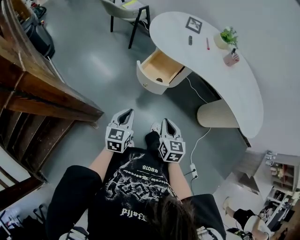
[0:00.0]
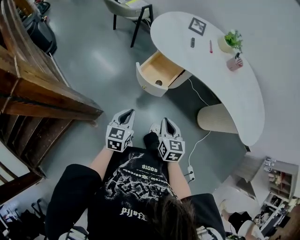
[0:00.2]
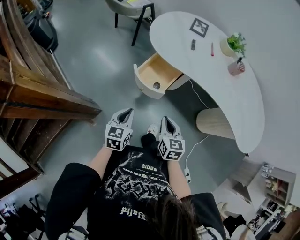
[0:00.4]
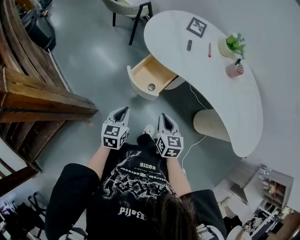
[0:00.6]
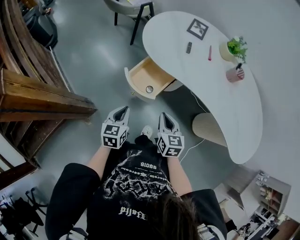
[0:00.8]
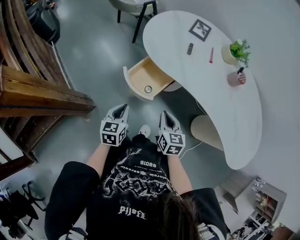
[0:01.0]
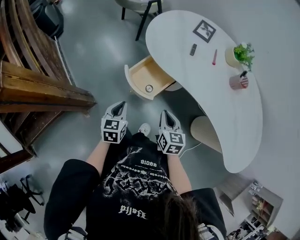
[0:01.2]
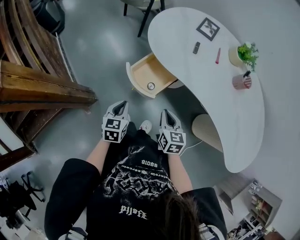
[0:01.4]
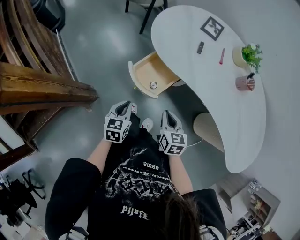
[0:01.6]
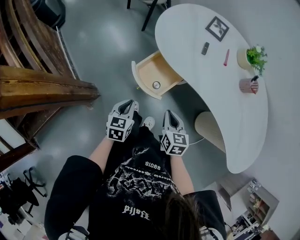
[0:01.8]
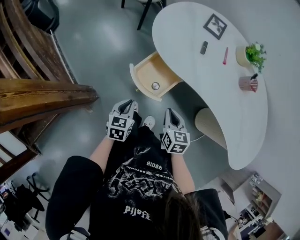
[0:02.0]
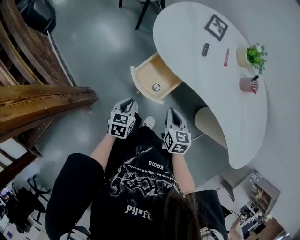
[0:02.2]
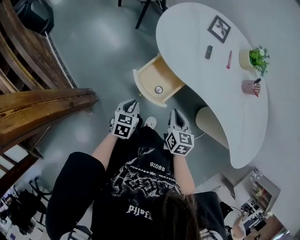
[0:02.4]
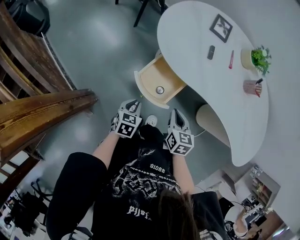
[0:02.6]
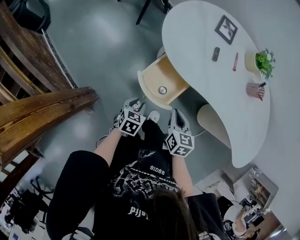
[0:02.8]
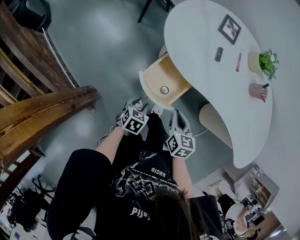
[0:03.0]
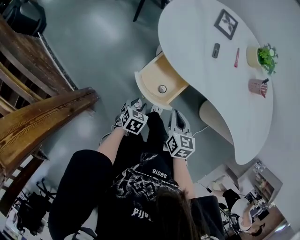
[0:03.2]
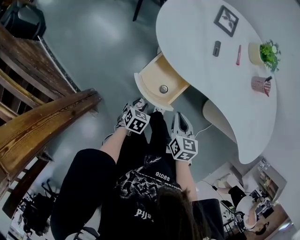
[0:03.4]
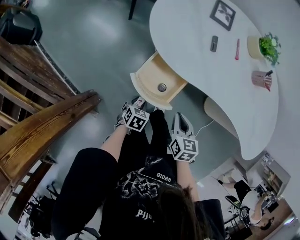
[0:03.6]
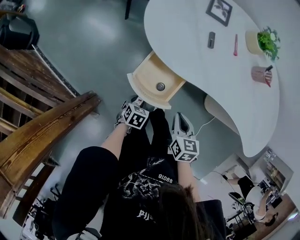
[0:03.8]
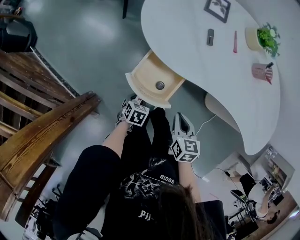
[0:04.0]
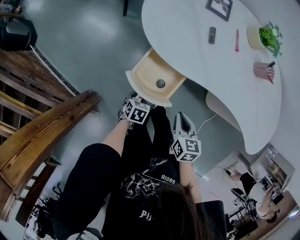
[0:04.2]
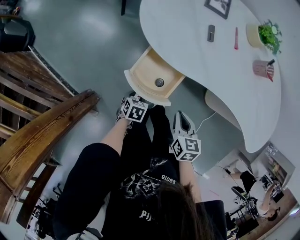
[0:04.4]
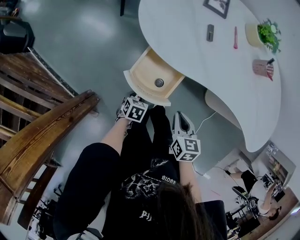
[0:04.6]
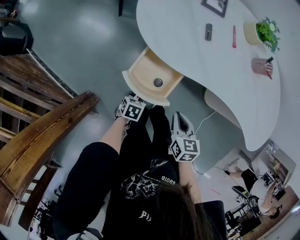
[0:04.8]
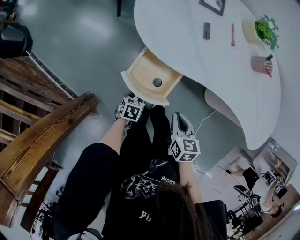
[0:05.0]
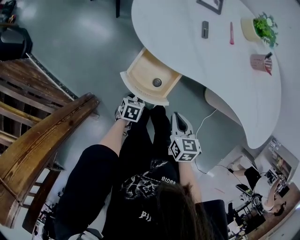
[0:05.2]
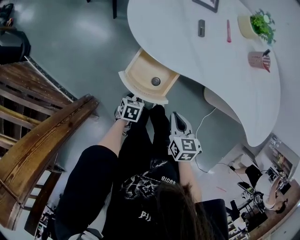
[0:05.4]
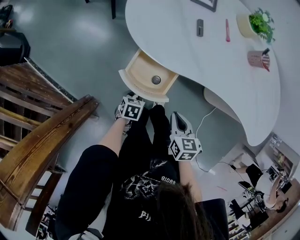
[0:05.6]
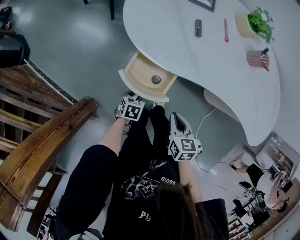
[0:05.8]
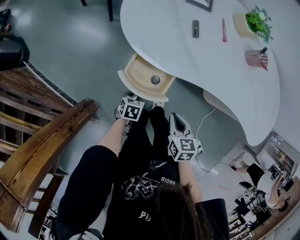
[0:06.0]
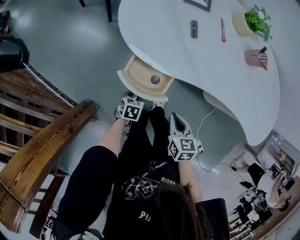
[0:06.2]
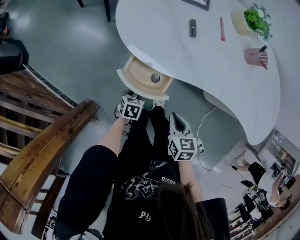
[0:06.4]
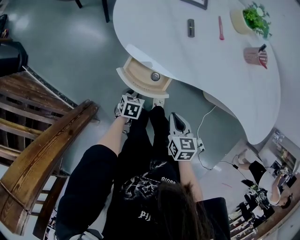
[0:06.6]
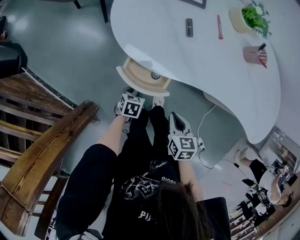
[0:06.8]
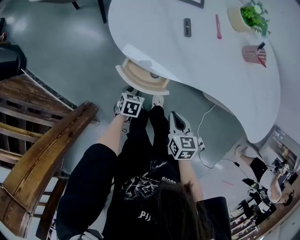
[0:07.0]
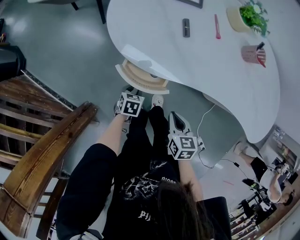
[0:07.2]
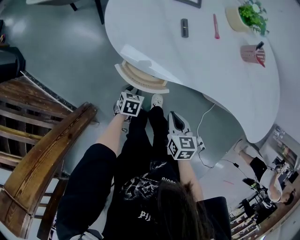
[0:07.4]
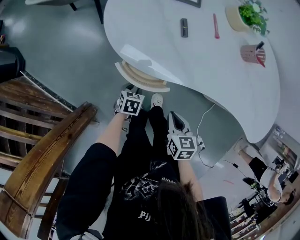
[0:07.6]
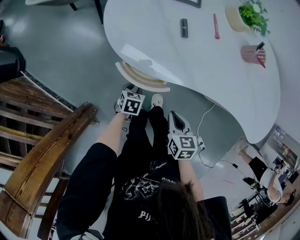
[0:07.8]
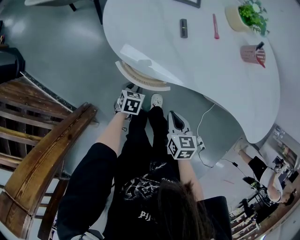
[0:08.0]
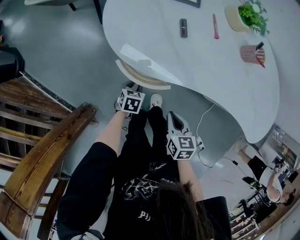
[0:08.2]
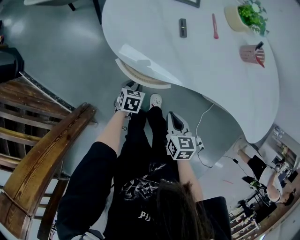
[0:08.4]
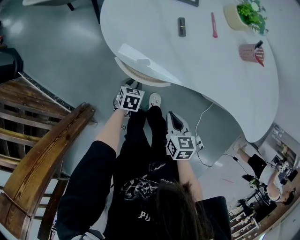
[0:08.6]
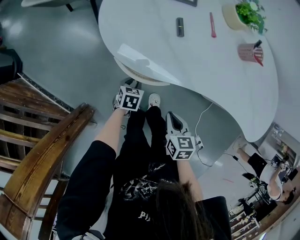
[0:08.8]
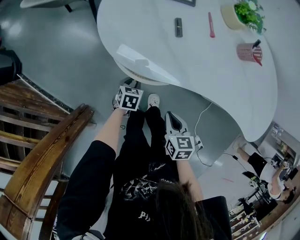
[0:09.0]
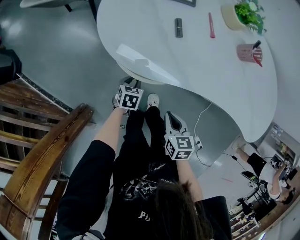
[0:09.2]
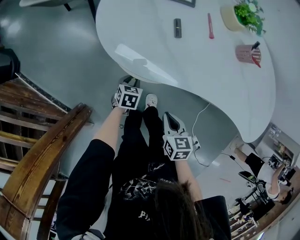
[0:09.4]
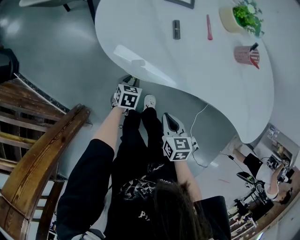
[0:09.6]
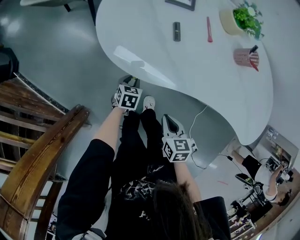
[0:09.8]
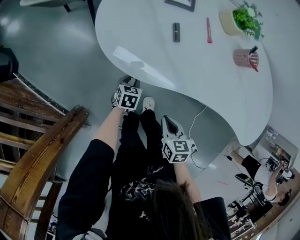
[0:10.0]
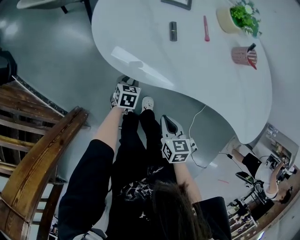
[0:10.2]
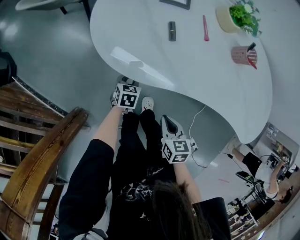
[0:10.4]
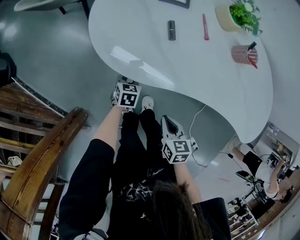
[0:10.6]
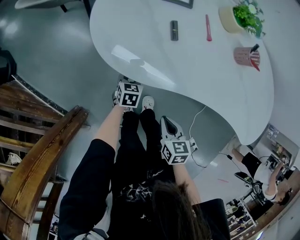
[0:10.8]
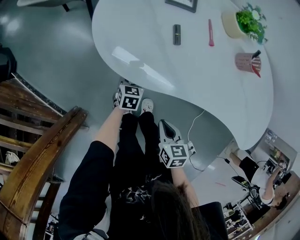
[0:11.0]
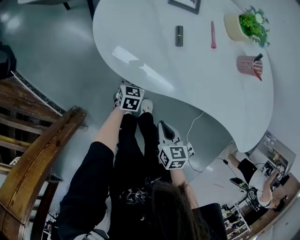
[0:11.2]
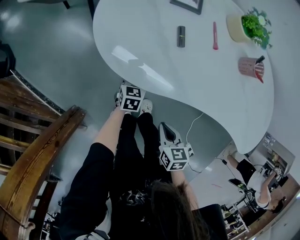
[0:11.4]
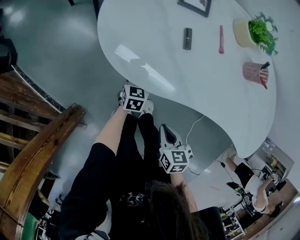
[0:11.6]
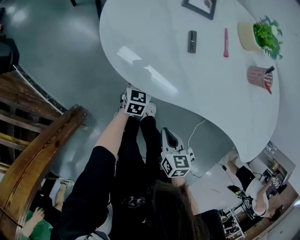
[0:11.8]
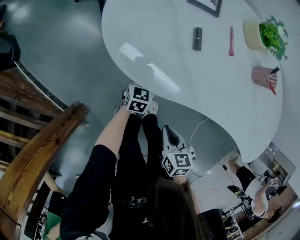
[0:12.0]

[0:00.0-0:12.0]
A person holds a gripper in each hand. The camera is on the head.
0:00.0 to 0:01.6: The left gripper heads forward, to the right and downward, covering about 20 cm. Meanwhile the right gripper heads forward and to the right, covering roughly 20 cm.
0:01.6 to 0:03.0: The left gripper moves downward and forward, some 15 cm, changes its angle by some 30 degrees, and opens, while the right gripper moves forward and to the left, roughly 10 cm.
0:03.0 to 0:04.4: The right gripper moves roughly 5 cm; the left gripper goes about 10 cm downward.
0:04.4 to 0:06.0: There are only small adjustments of the grippers.
0:06.0 to 0:07.6: The left gripper shifts approximately 5 cm forward.
0:07.6 to 0:09.0: There are only small adjustments of the grippers.
0:09.0 to 0:10.4: The left gripper ends up approximately 5 cm from where it was.
0:10.4 to 0:12.0: The left gripper heads forward, covering roughly 5 cm.

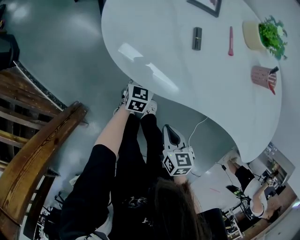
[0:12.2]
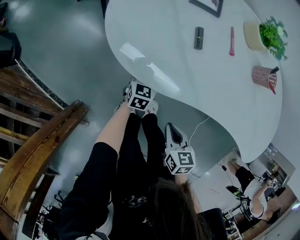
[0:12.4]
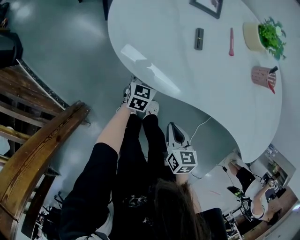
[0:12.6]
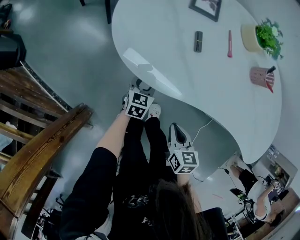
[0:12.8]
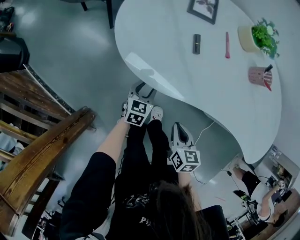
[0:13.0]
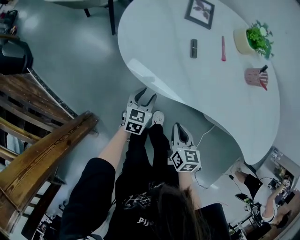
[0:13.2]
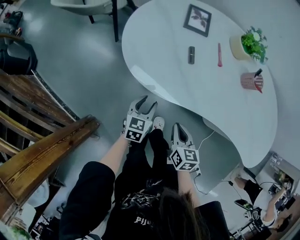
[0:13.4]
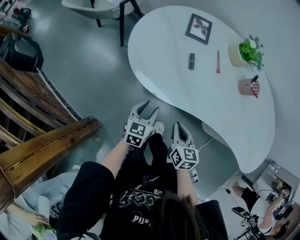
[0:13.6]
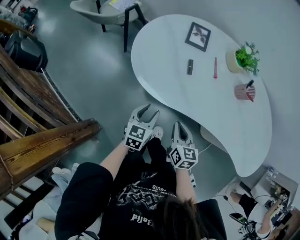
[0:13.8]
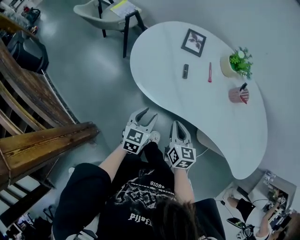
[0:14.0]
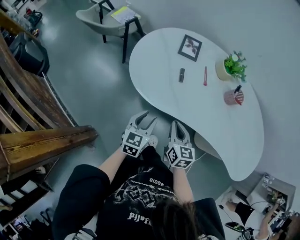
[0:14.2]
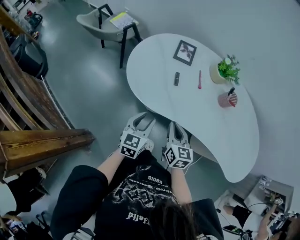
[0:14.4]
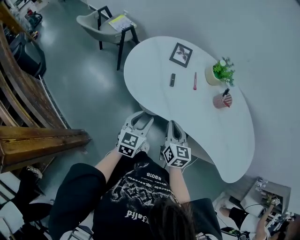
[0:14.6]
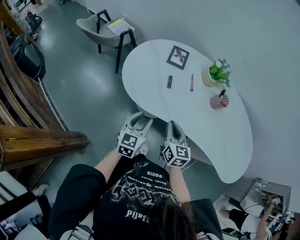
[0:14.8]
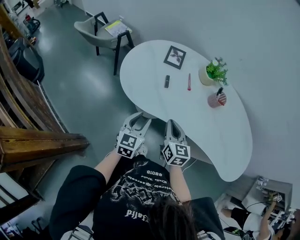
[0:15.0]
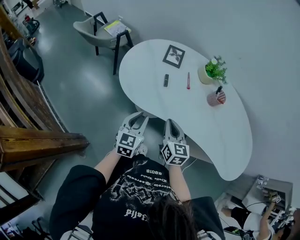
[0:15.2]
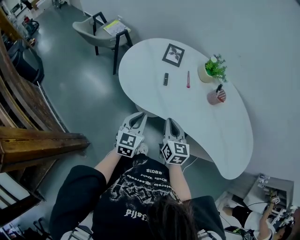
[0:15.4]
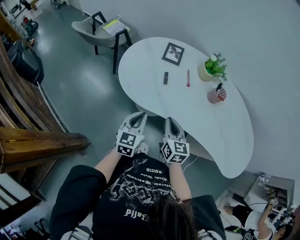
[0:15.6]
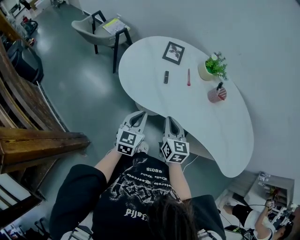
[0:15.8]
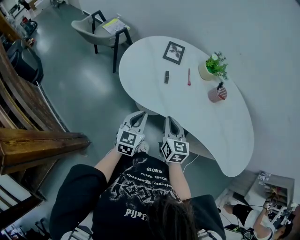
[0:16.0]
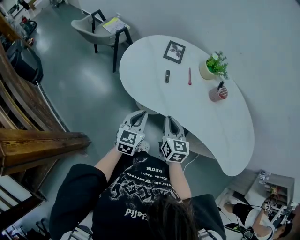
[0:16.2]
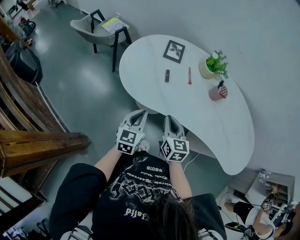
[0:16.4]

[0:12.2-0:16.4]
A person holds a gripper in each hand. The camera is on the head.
0:12.2 to 0:13.6: The right gripper shifts about 10 cm upward. Meanwhile the left gripper goes about 20 cm upward and backward.
0:13.6 to 0:15.0: The two grippers go about 15 cm upward.
0:15.0 to 0:16.4: The left gripper closes up.

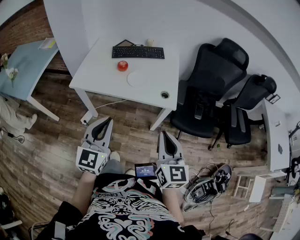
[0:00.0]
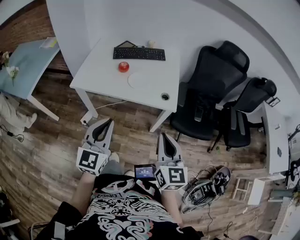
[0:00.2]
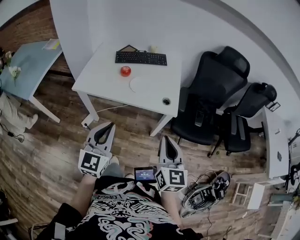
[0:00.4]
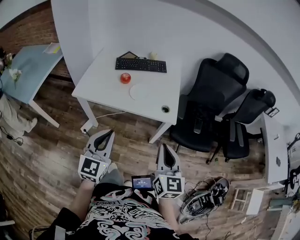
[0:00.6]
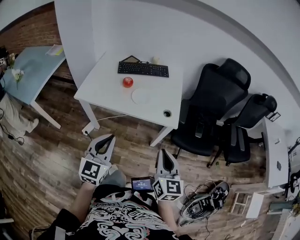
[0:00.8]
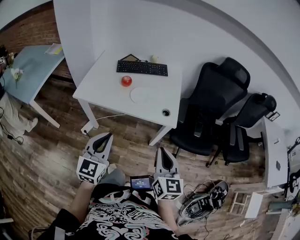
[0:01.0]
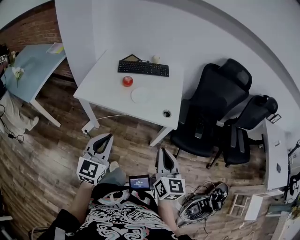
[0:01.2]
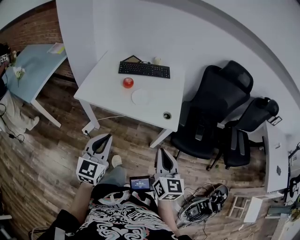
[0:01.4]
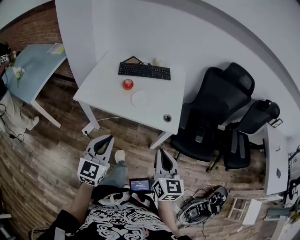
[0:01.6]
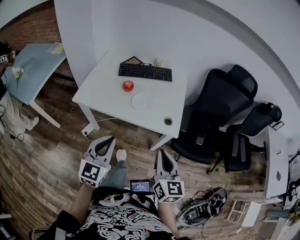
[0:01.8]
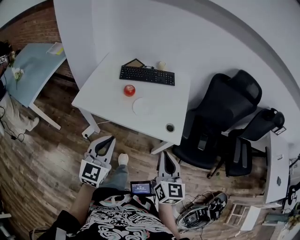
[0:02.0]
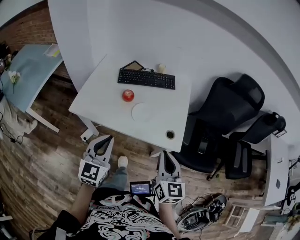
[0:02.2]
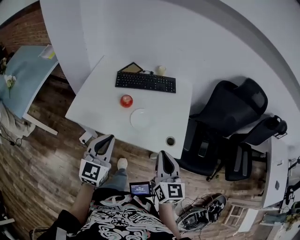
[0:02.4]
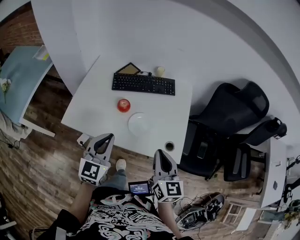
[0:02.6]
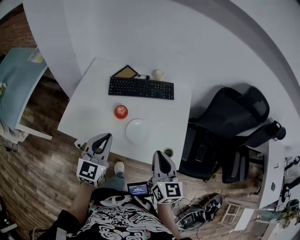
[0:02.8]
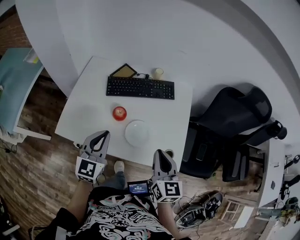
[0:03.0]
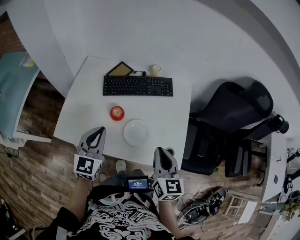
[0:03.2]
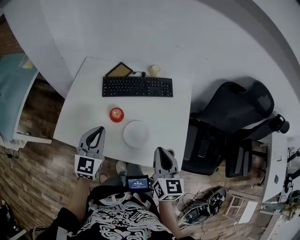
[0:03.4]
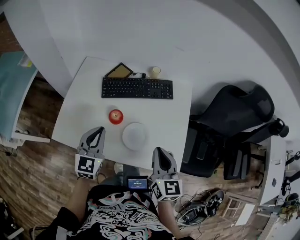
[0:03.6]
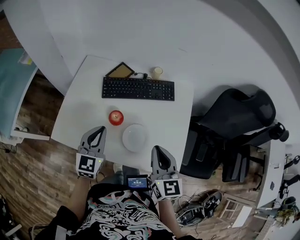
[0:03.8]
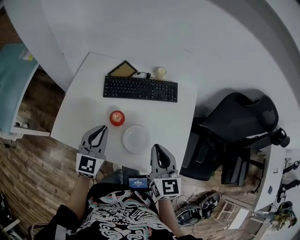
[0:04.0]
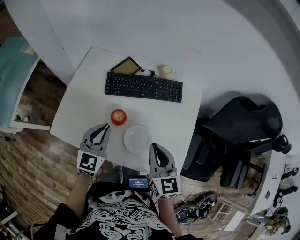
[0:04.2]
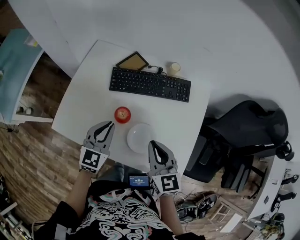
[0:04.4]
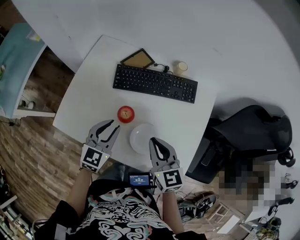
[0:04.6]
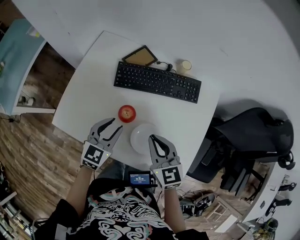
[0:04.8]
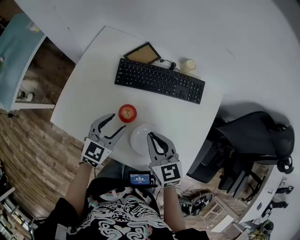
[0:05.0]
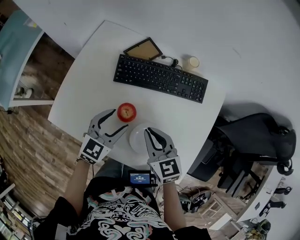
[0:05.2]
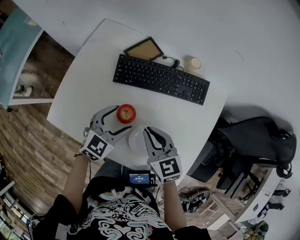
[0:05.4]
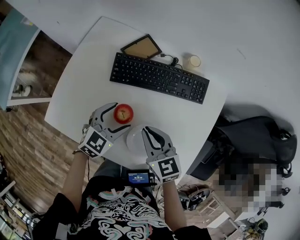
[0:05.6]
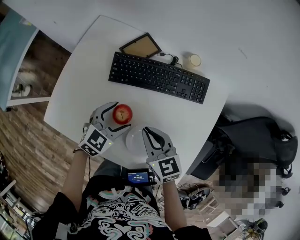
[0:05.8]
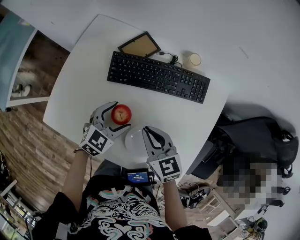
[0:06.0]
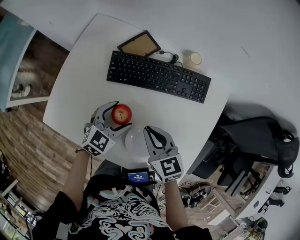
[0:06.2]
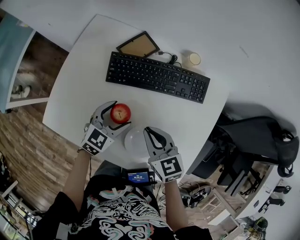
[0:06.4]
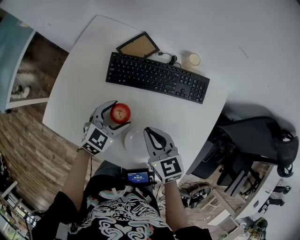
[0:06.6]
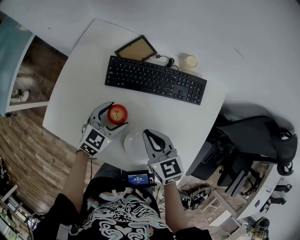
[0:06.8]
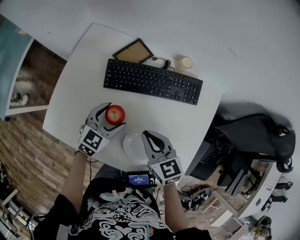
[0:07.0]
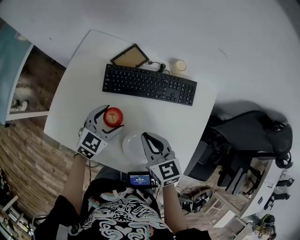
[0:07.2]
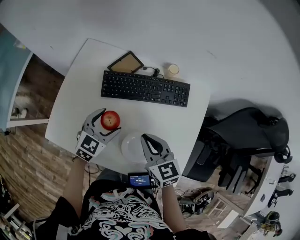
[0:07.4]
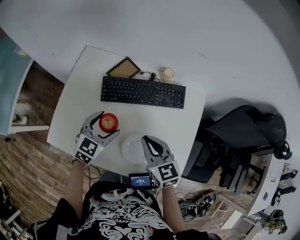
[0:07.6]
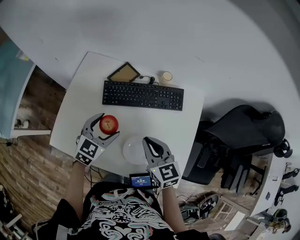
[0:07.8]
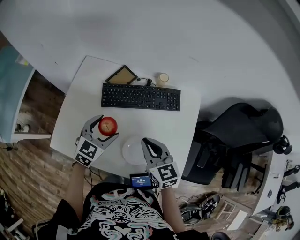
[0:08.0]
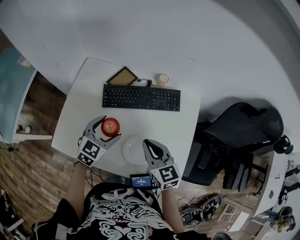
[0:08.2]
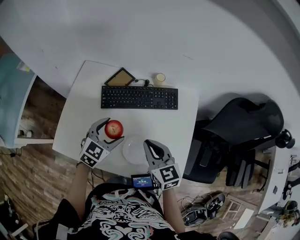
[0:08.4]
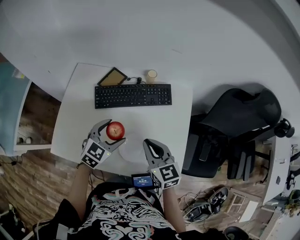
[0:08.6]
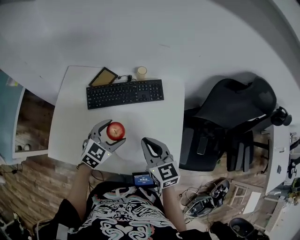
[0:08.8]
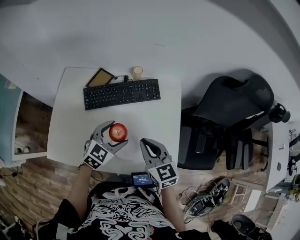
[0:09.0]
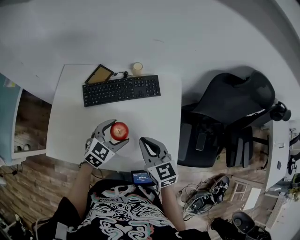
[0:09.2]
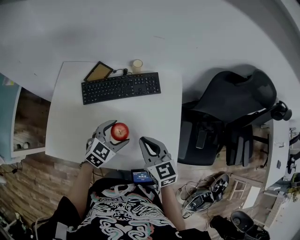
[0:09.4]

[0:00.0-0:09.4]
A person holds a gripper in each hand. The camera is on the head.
0:00.0 to 0:01.6: The right gripper goes approximately 5 cm forward.
0:01.6 to 0:03.2: The grippers both shift forward by some 35 cm.
0:03.2 to 0:04.8: The right gripper goes approximately 15 cm forward, downward and to the left, and swivels some 30 degrees, while the left gripper is displaced downward and forward by some 15 cm.
0:04.8 to 0:06.2: The grippers both shift downward and forward by approximately 10 cm. The left gripper opens.
0:06.2 to 0:07.8: The two grippers go roughly 10 cm upward.
0:07.8 to 0:09.4: The right gripper heads to the right and backward, covering some 10 cm. The left gripper travels to the right by some 15 cm.
